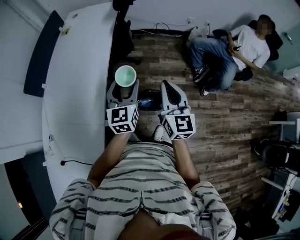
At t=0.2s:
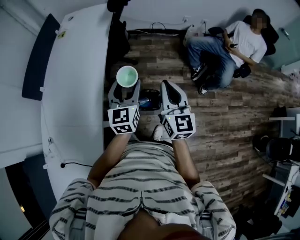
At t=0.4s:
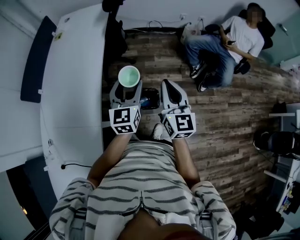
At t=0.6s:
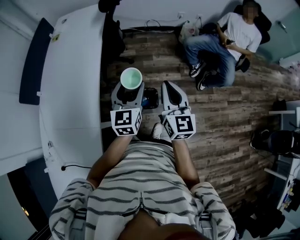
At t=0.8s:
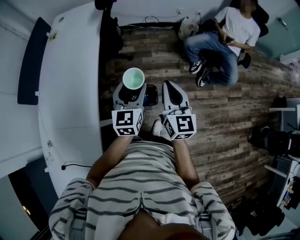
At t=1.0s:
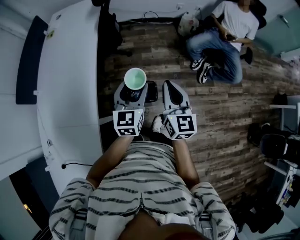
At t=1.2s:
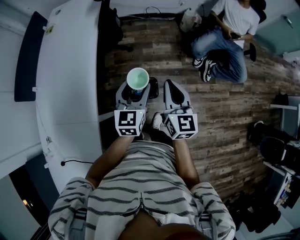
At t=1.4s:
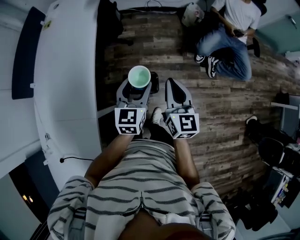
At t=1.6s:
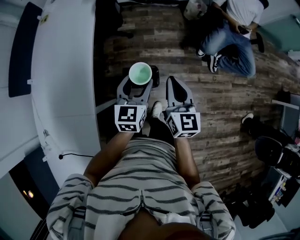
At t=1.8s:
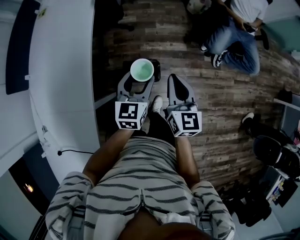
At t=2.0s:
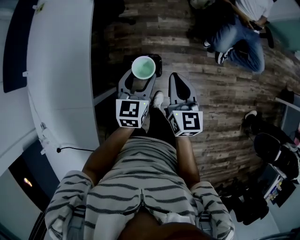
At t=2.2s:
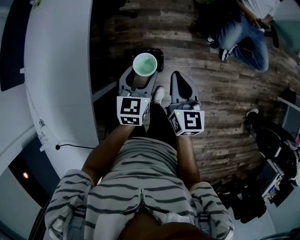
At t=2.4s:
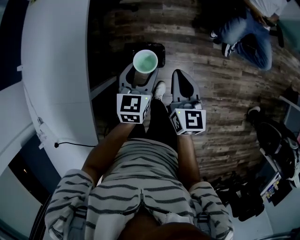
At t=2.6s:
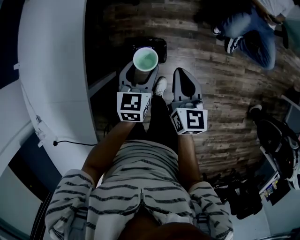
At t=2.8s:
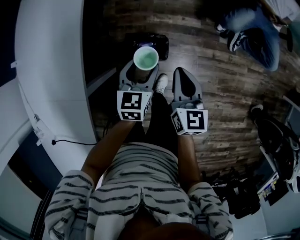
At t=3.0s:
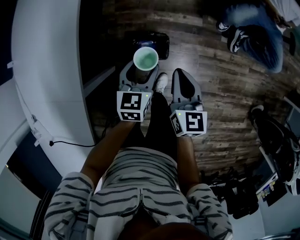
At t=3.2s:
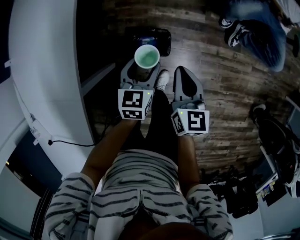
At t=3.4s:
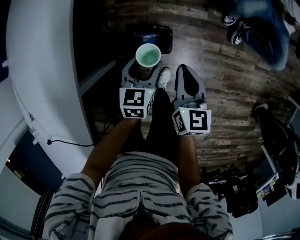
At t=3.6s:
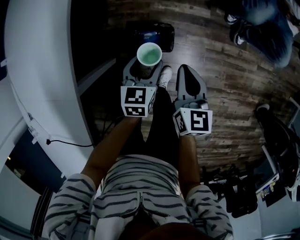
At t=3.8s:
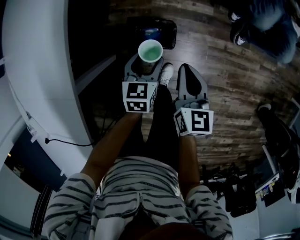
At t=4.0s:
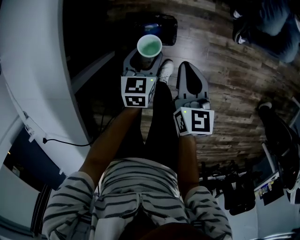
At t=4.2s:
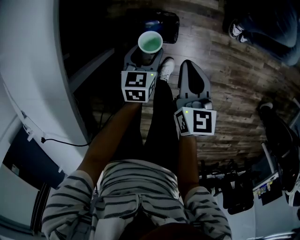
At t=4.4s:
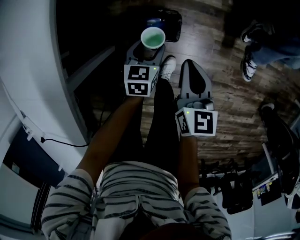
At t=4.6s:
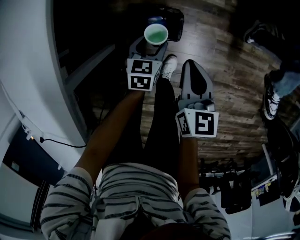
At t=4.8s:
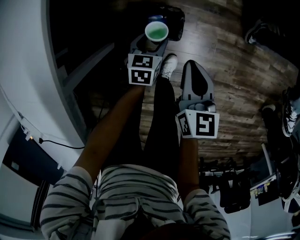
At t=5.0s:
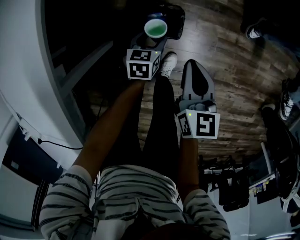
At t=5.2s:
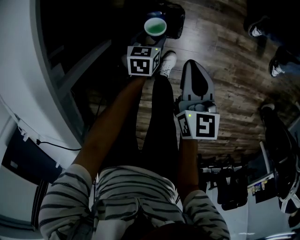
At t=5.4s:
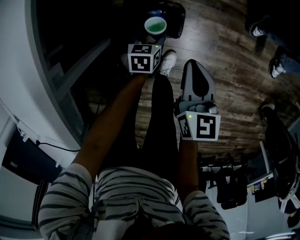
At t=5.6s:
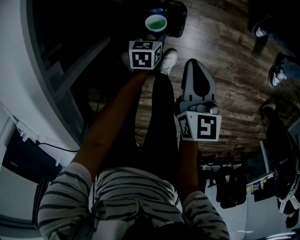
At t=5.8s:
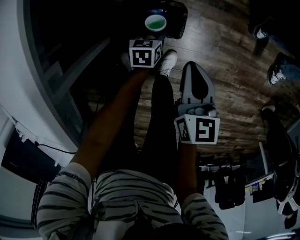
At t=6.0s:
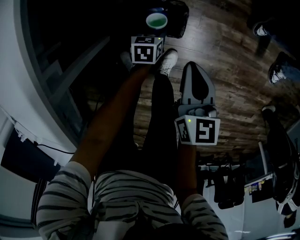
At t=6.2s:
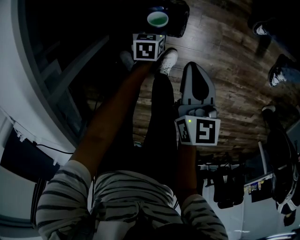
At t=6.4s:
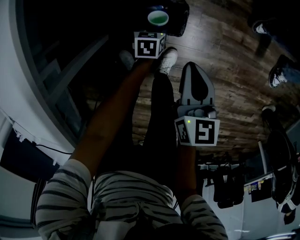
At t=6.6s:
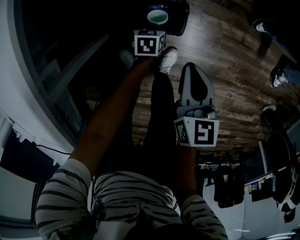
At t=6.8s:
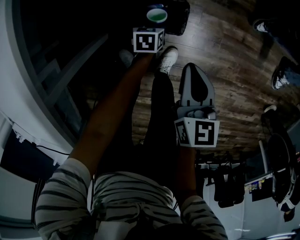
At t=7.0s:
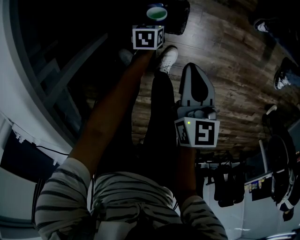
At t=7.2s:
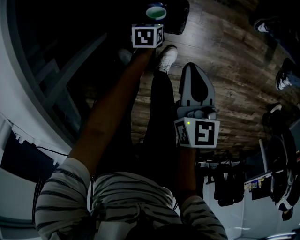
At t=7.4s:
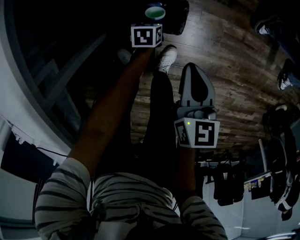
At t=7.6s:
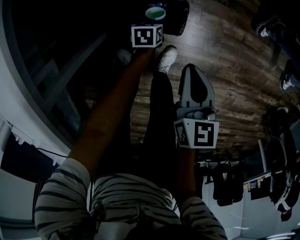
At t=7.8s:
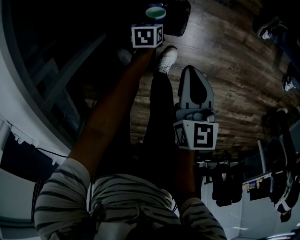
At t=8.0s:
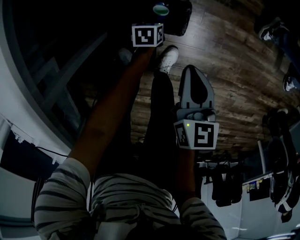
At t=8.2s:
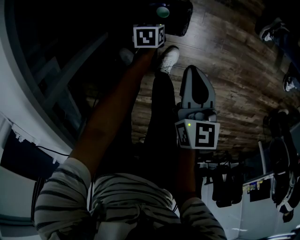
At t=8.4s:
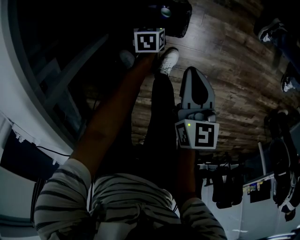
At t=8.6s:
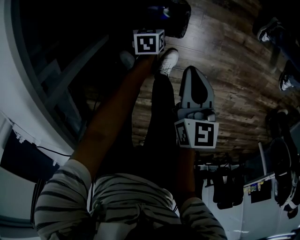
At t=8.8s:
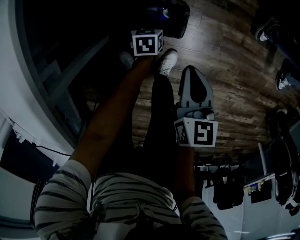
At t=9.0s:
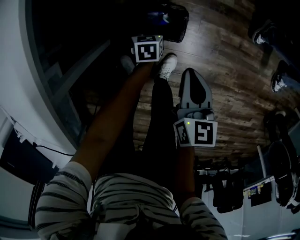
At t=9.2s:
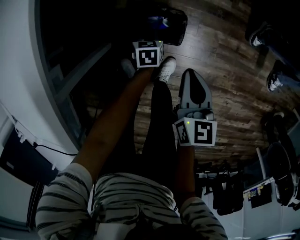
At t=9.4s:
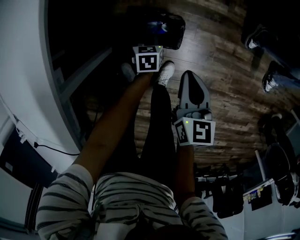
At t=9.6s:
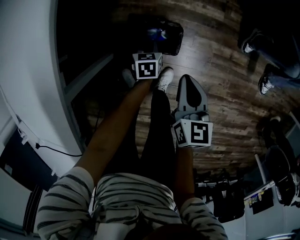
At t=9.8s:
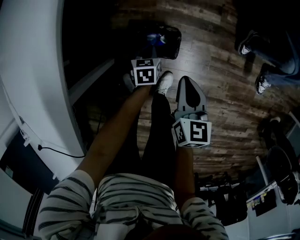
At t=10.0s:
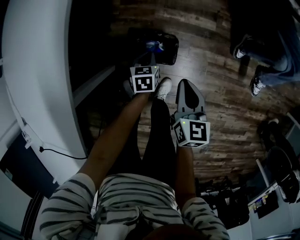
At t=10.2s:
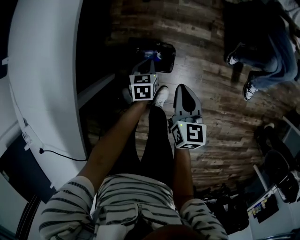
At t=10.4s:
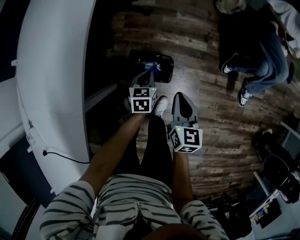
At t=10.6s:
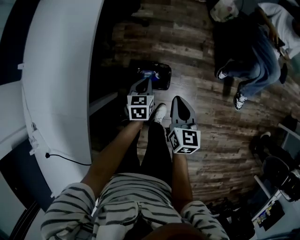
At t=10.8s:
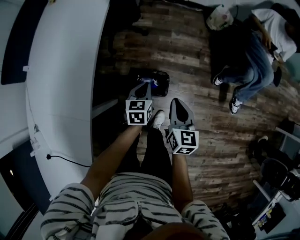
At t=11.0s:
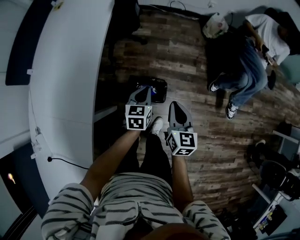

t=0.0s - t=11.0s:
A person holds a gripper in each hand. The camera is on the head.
t=0.0s - t=1.6s: The left gripper travels to the right and downward by approximately 15 cm; the right gripper is displaced downward and to the right by approximately 10 cm.
t=1.6s - t=3.2s: The two grippers go about 20 cm downward.
t=3.2s - t=4.8s: The left gripper goes approximately 25 cm downward, while the right gripper is displaced downward by some 15 cm.
t=4.8s - t=6.2s: The right gripper goes about 5 cm downward. Meanwhile the left gripper shifts about 15 cm downward.
t=6.2s - t=7.8s: The left gripper is displaced downward by about 5 cm.
t=7.8s - t=9.4s: The right gripper heads upward, covering approximately 5 cm, while the left gripper travels upward by roughly 10 cm, and closes its fingers.
t=9.4s - t=11.0s: The right gripper shifts about 20 cm upward. The left gripper moves upward, about 35 cm, and rotates roughly 30 degrees.

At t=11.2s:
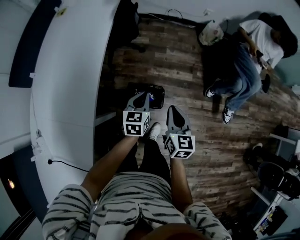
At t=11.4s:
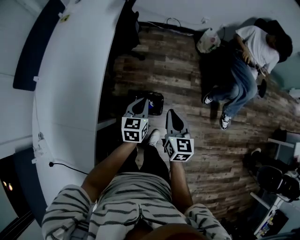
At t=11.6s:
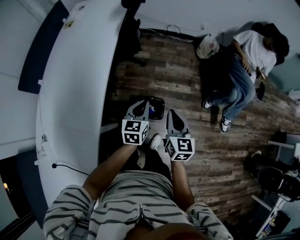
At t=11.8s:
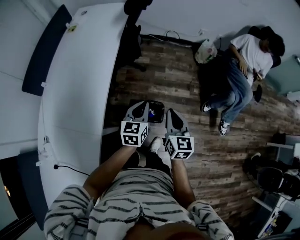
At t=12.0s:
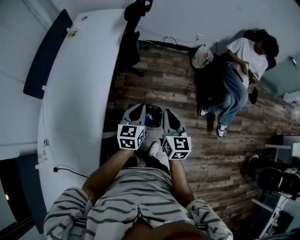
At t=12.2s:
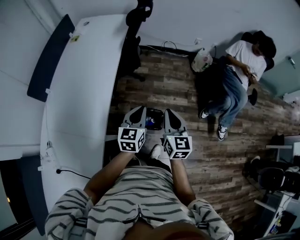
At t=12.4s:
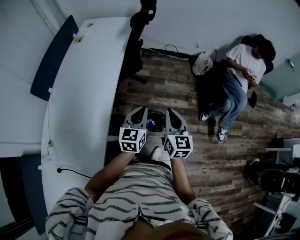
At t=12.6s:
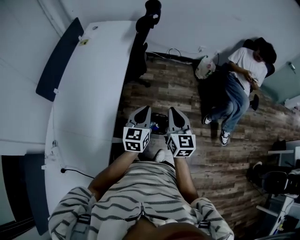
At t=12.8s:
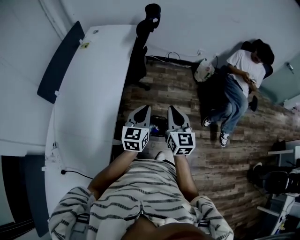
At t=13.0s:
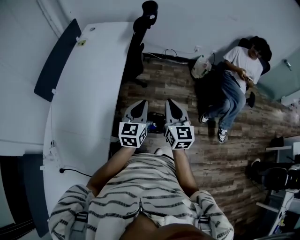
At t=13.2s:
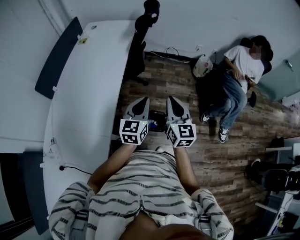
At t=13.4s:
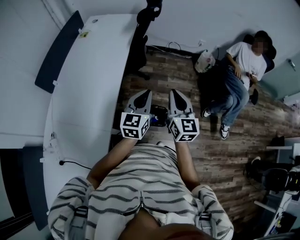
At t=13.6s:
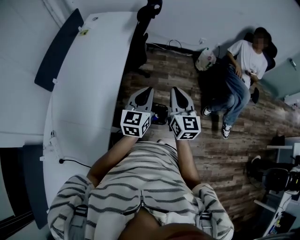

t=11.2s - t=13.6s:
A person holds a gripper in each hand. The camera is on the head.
t=11.2s - t=12.4s: The grippers both shift upward by some 15 cm.
t=12.4s - t=13.6s: The left gripper travels upward by approximately 5 cm, while the right gripper ends up some 5 cm from where it was.

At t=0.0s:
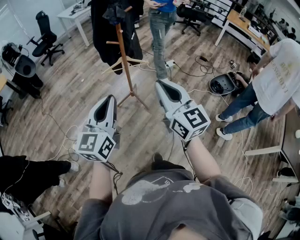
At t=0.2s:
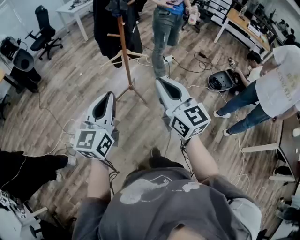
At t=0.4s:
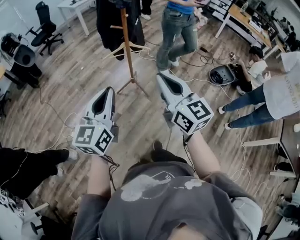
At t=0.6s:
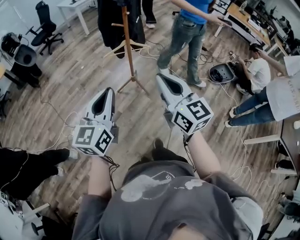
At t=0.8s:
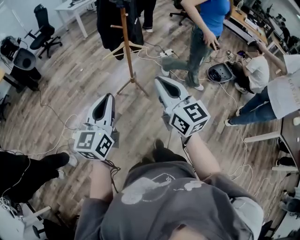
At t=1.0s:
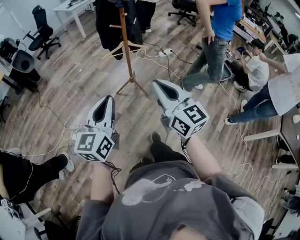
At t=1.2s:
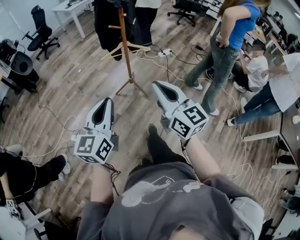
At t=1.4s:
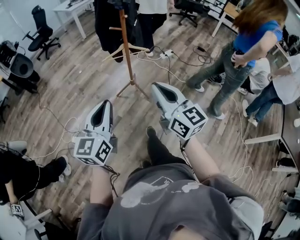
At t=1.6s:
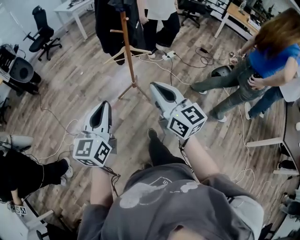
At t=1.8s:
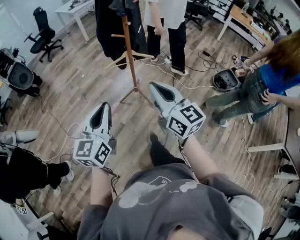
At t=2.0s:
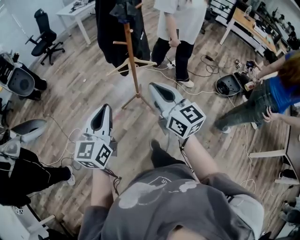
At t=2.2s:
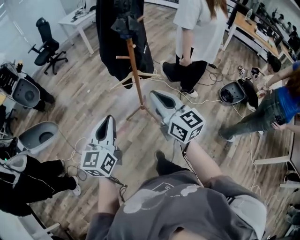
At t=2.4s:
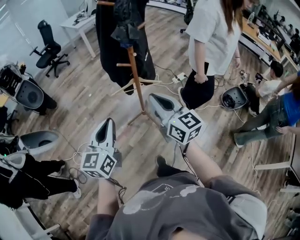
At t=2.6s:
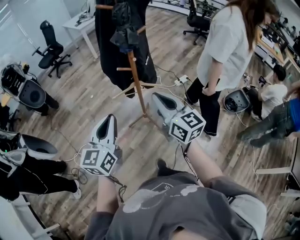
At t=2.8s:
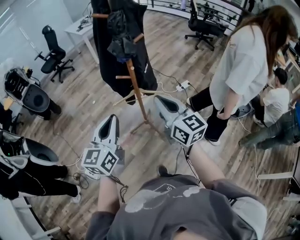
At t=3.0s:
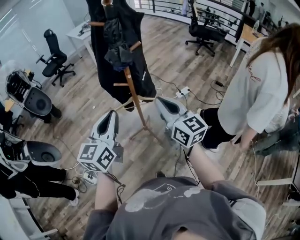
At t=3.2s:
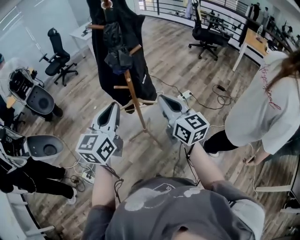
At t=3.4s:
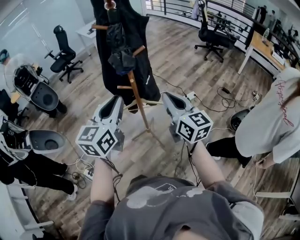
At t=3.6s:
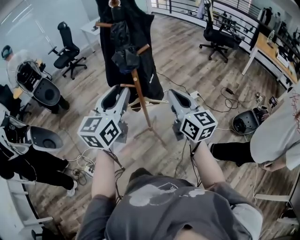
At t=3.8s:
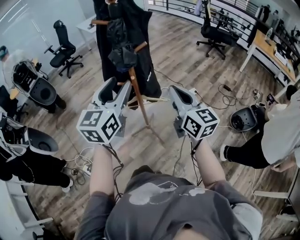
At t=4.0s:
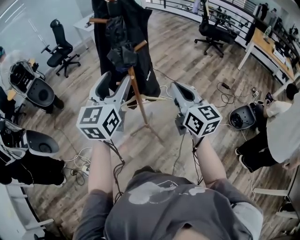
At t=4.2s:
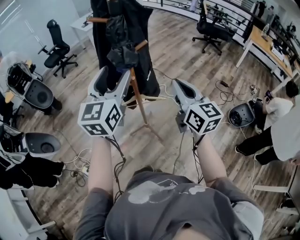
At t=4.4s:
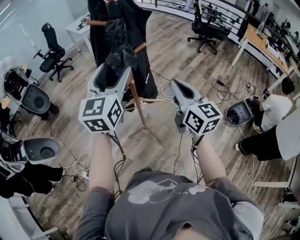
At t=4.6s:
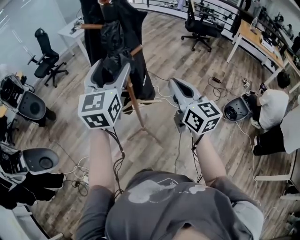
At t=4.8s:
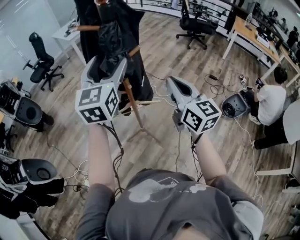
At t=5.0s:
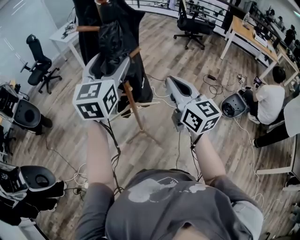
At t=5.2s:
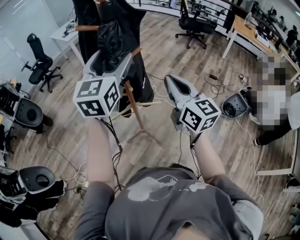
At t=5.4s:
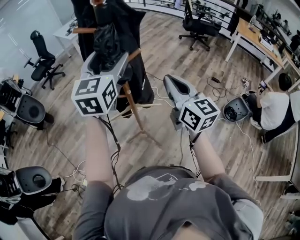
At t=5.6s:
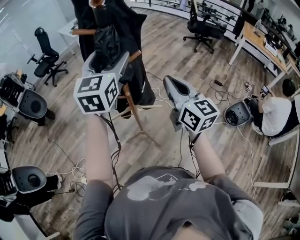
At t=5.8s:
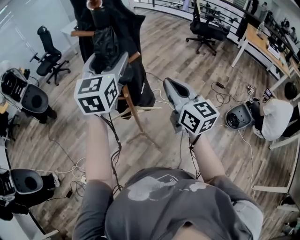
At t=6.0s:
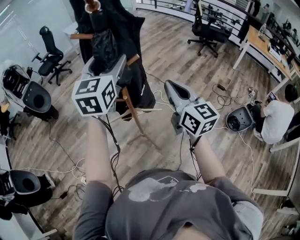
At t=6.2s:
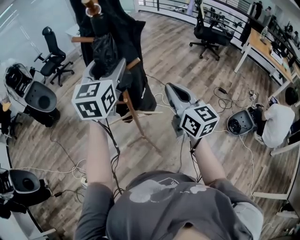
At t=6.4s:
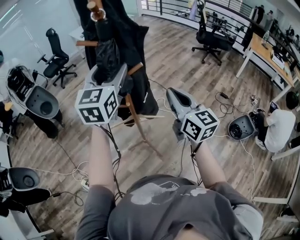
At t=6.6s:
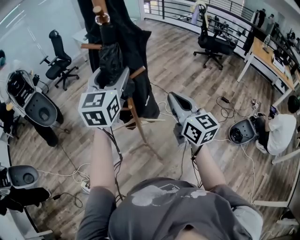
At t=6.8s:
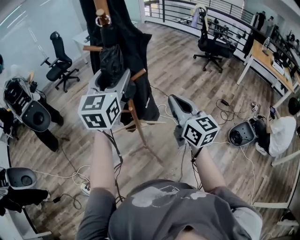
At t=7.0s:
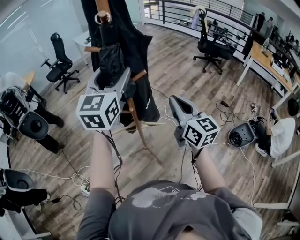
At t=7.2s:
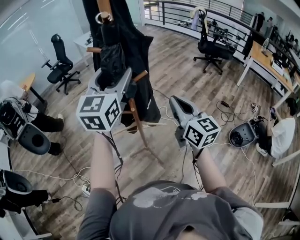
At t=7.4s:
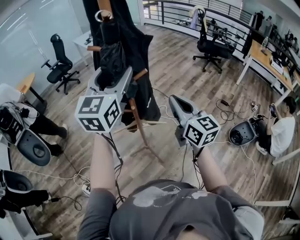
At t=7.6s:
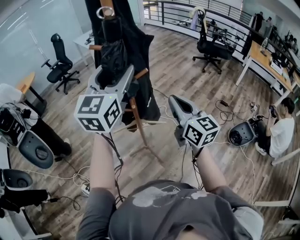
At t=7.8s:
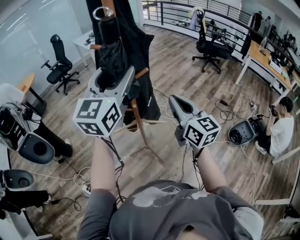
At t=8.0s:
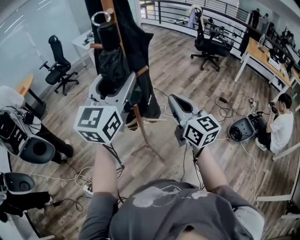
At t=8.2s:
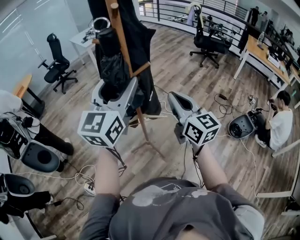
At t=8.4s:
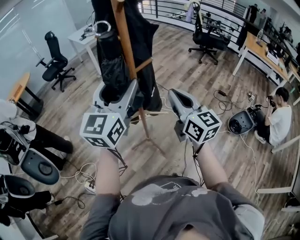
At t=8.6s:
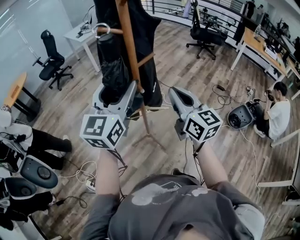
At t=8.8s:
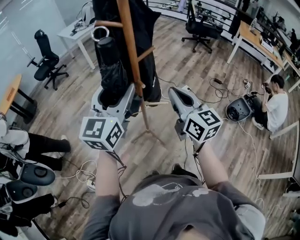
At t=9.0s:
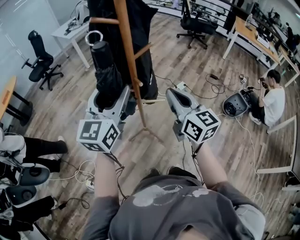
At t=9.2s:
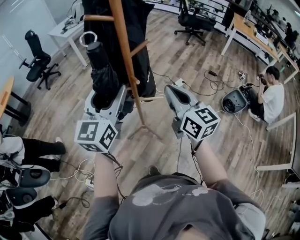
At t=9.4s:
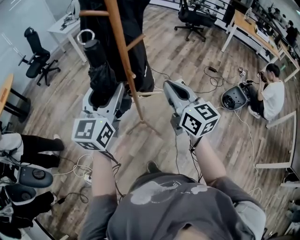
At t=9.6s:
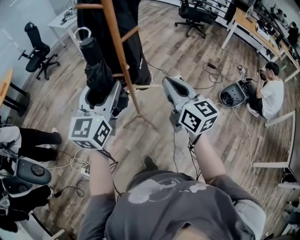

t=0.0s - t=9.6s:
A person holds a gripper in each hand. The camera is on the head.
t=0.0s - t=1.6s: The grippers both shift to the left and downward by approximately 10 cm. The right gripper reaches approximately 10 cm backward, then returns. Meanwhile the left gripper reaches some 10 cm backward, then returns.
t=1.6s - t=3.2s: The left gripper moves forward and to the right, some 35 cm, while the right gripper heads forward, covering about 30 cm.
t=3.2s - t=4.8s: The left gripper goes some 20 cm forward and upward, and opens up. The right gripper is displaced forward by some 10 cm.
t=4.8s - t=6.4s: The right gripper goes some 5 cm forward; the left gripper moves about 5 cm.
t=6.4s - t=8.0s: The right gripper goes some 5 cm backward; the left gripper moves backward and upward, some 10 cm.
t=8.0s - t=9.6s: The left gripper heads downward and to the left, covering some 15 cm; the right gripper is displaced downward and backward by some 10 cm.
